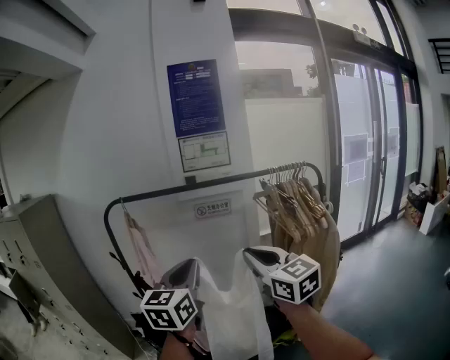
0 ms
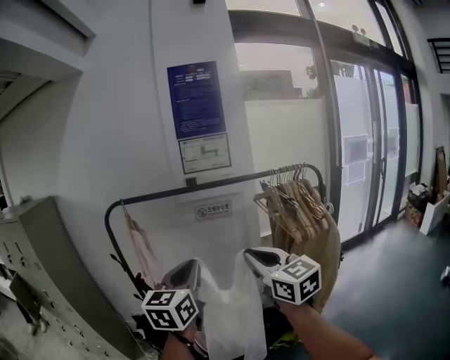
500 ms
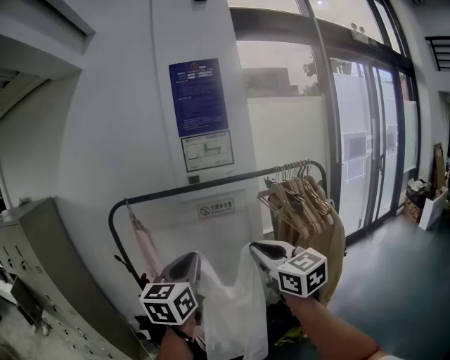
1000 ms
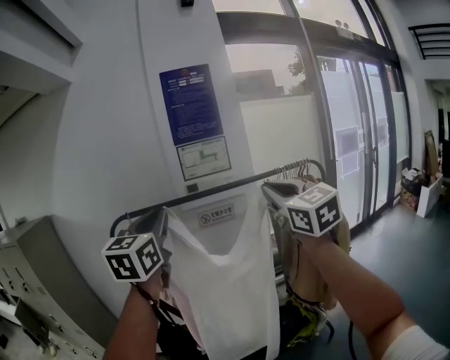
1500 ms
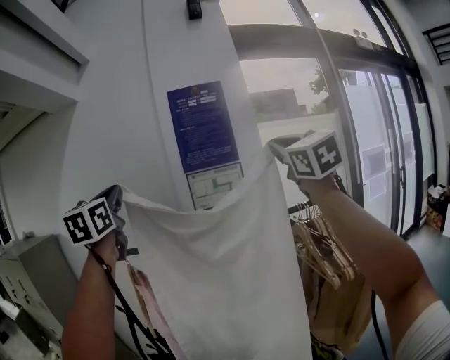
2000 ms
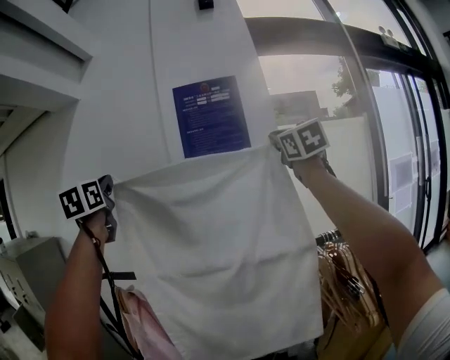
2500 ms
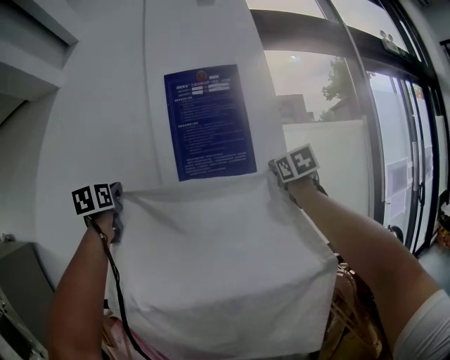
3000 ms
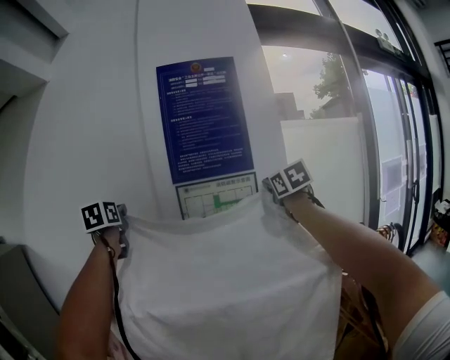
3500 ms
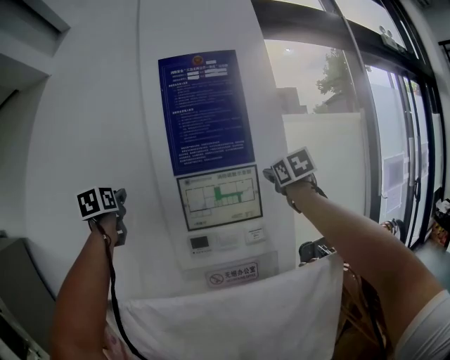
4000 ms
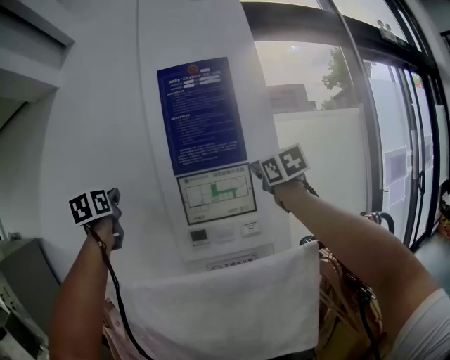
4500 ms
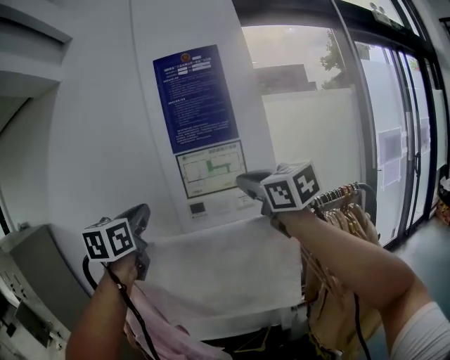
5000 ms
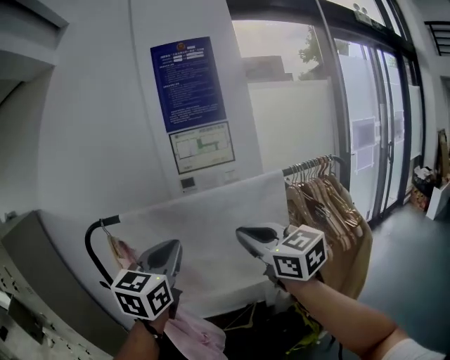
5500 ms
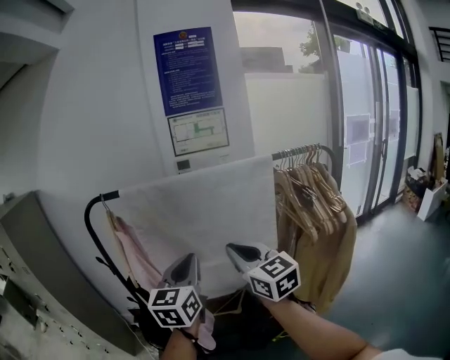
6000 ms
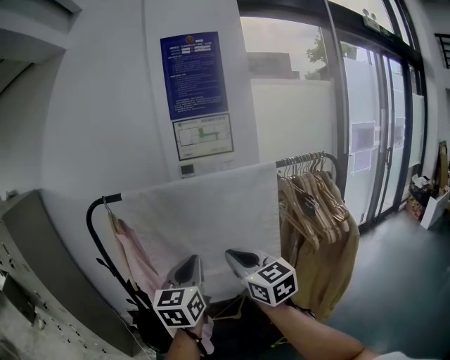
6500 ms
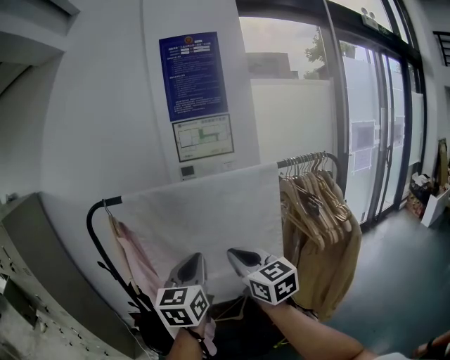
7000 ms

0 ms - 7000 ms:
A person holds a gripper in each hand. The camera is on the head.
0 ms - 2000 ms: The right gripper travels upward and forward by roughly 40 cm, and changes its angle by approximately 30 degrees. The left gripper moves upward, forward and to the left, approximately 40 cm, and turns by some 20 degrees.
2000 ms - 3500 ms: The pair of grippers is taken forward, about 40 cm. The left gripper changes its angle by approximately 20 degrees; the right gripper rotates some 20 degrees.
3500 ms - 5000 ms: The left gripper goes roughly 30 cm backward. The right gripper goes about 30 cm backward and to the left, and swivels some 30 degrees.
5000 ms - 7000 ms: The right gripper travels downward, backward and to the left by roughly 35 cm. Meanwhile the left gripper heads downward and backward, covering about 30 cm.

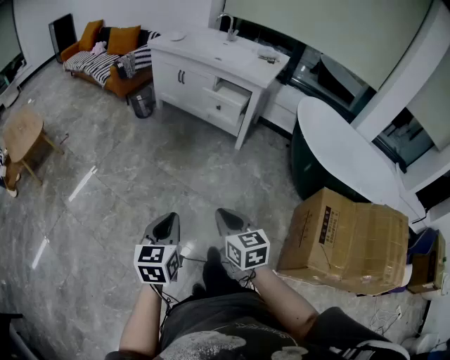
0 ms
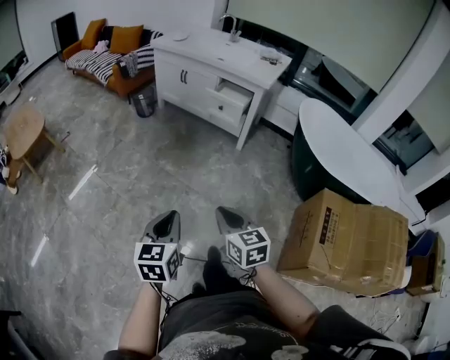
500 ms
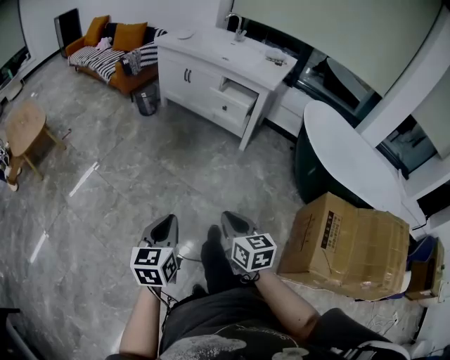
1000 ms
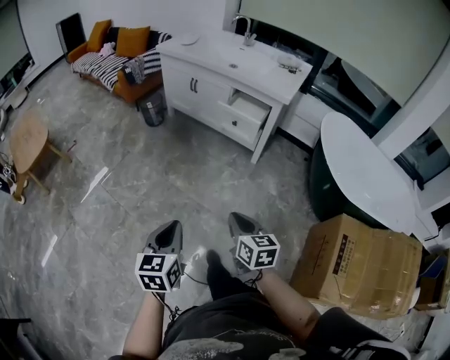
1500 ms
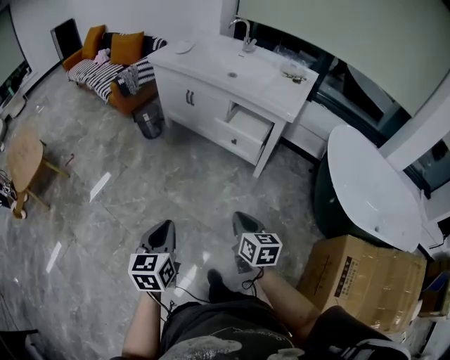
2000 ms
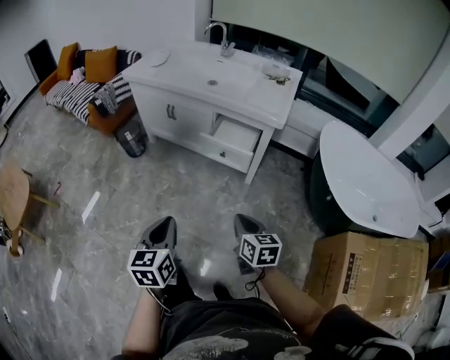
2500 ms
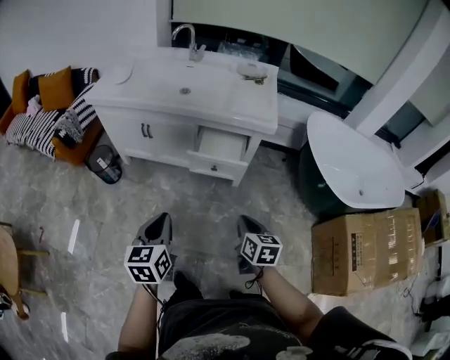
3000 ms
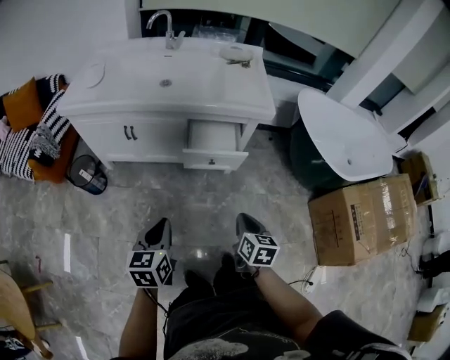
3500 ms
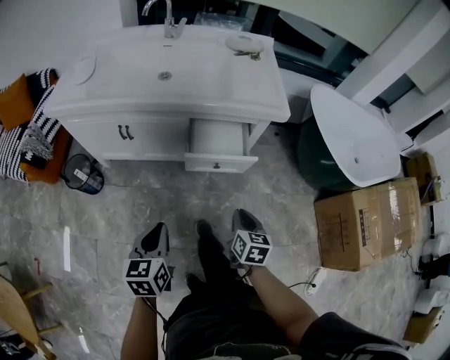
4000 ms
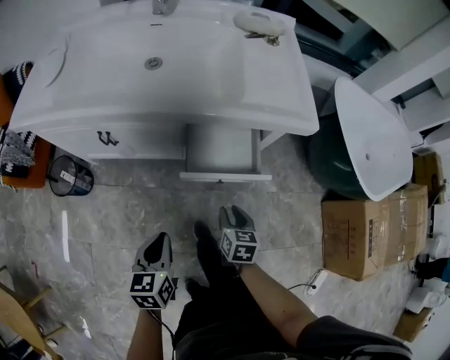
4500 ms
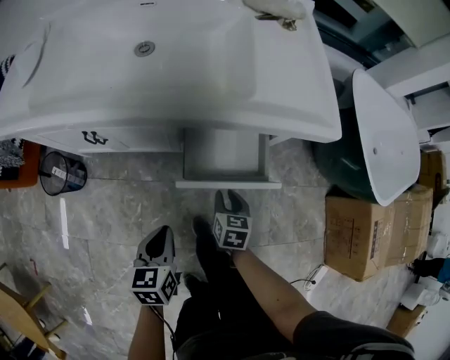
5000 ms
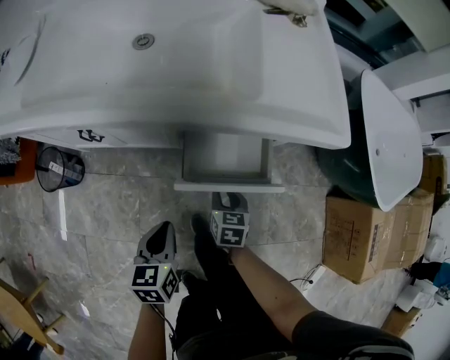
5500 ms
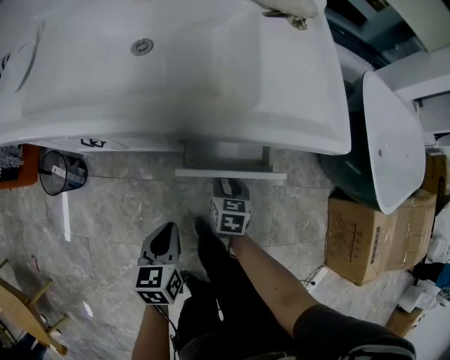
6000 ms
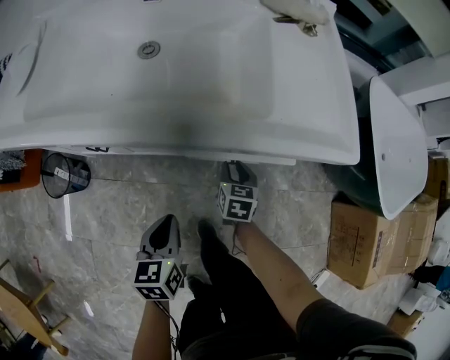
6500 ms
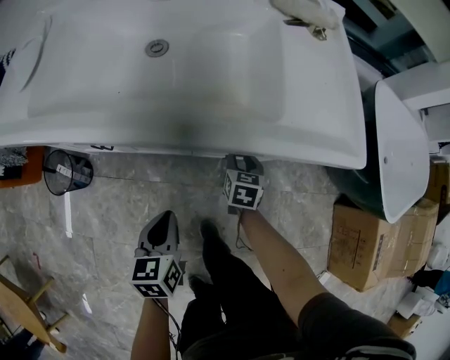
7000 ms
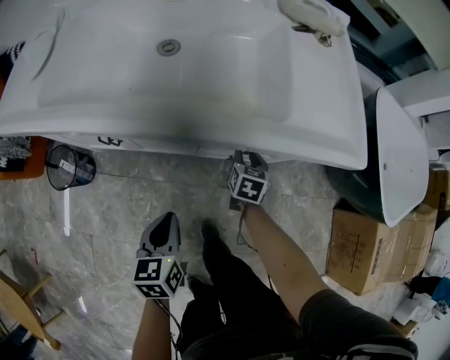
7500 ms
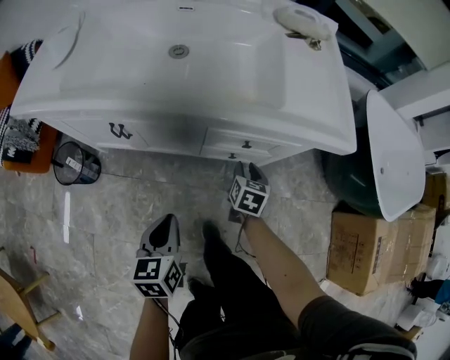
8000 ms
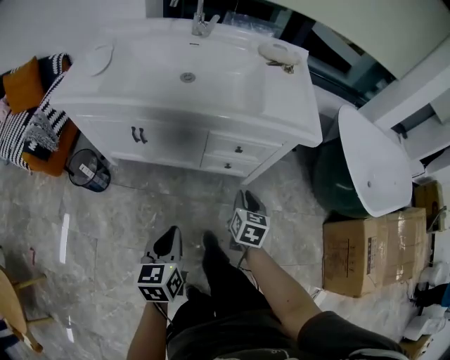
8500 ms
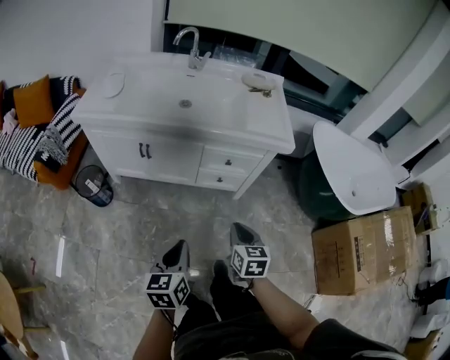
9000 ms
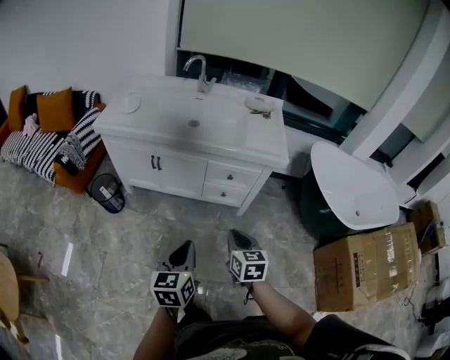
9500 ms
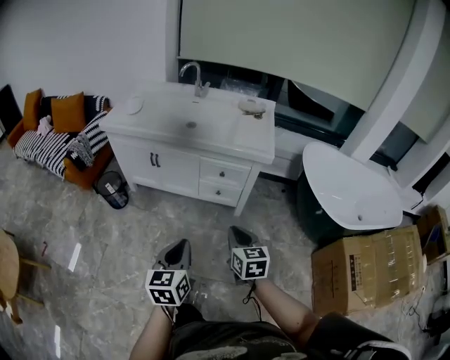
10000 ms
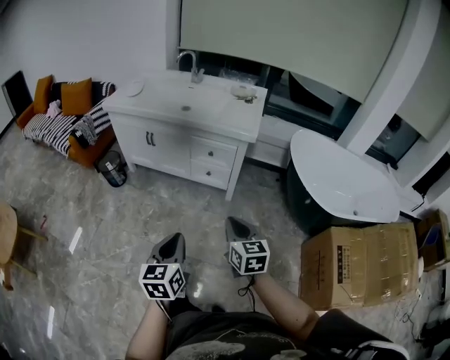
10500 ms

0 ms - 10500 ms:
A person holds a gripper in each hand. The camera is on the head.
0 ms - 2000 ms: The grippers both shift forward by approximately 30 cm.
2000 ms - 4000 ms: The right gripper ends up approximately 30 cm from where it was, and turns by about 40 degrees. The left gripper shifts by some 40 cm, and turns by some 30 degrees.
4000 ms - 6500 ms: The grippers both shift forward and downward by roughly 35 cm. The right gripper opens up.
6500 ms - 8500 ms: The two grippers go some 20 cm backward and upward.
8500 ms - 10500 ms: The right gripper moves backward, upward and to the right, some 40 cm, and turns by approximately 30 degrees. Meanwhile the left gripper moves backward, to the right and upward, about 40 cm.

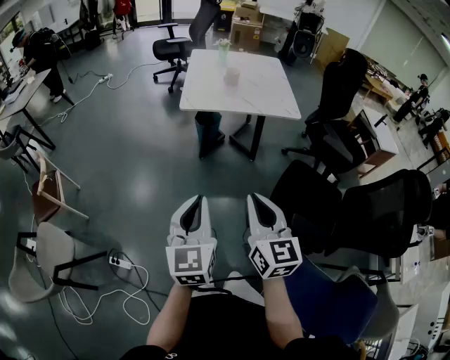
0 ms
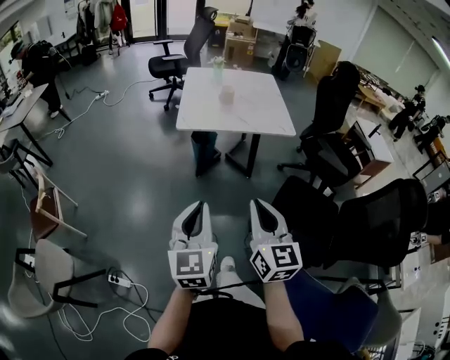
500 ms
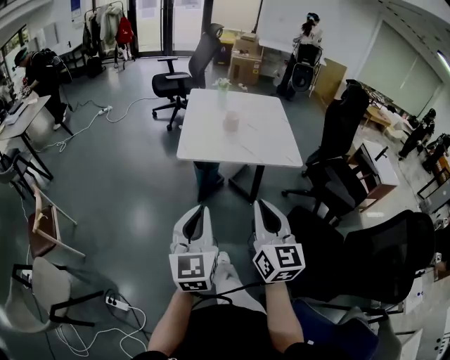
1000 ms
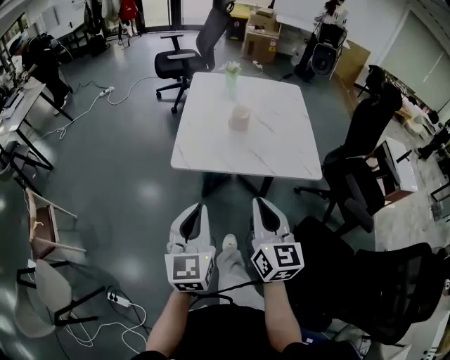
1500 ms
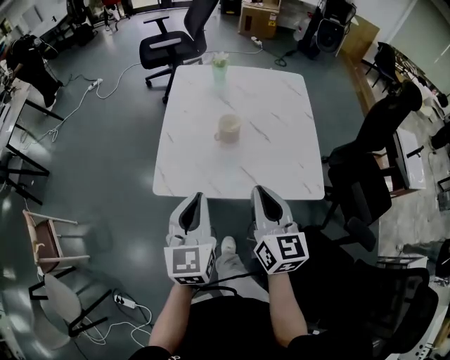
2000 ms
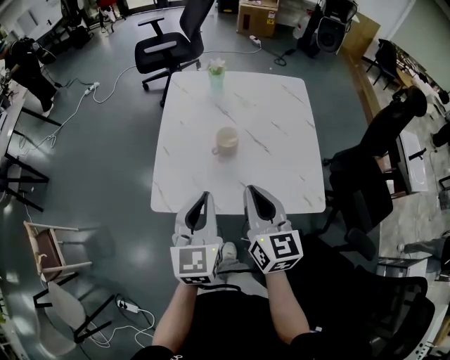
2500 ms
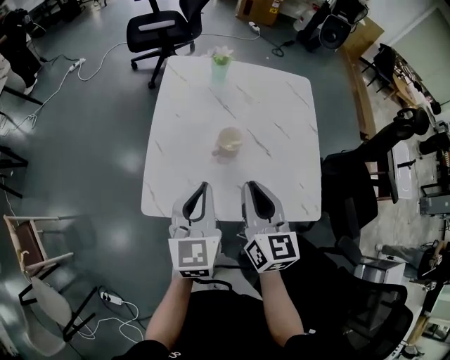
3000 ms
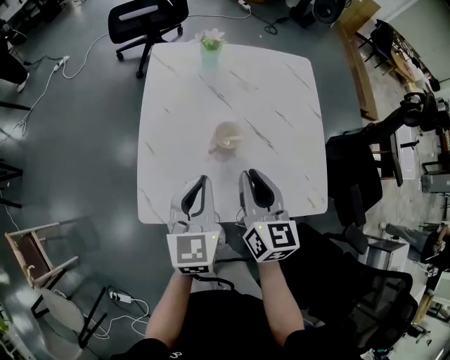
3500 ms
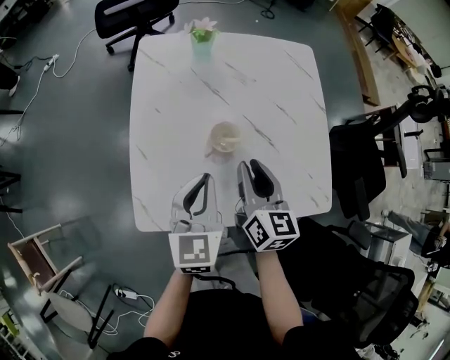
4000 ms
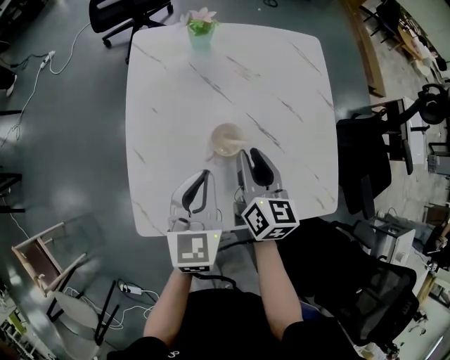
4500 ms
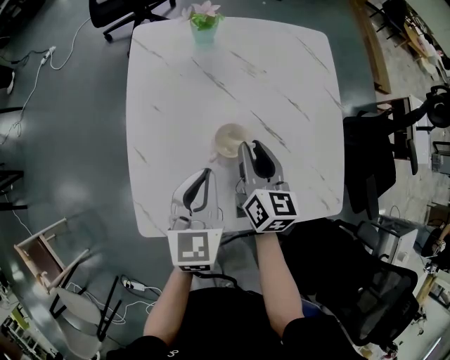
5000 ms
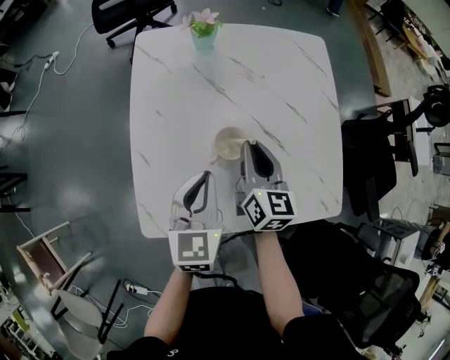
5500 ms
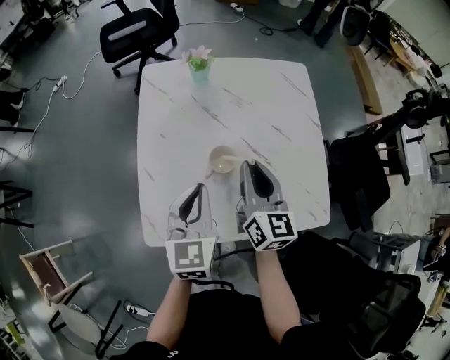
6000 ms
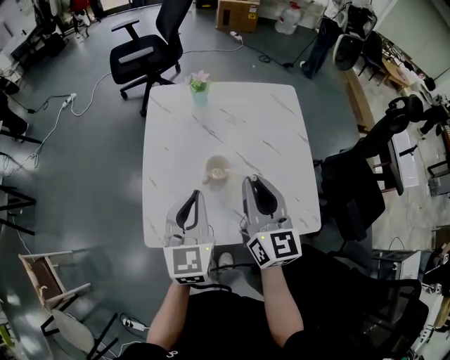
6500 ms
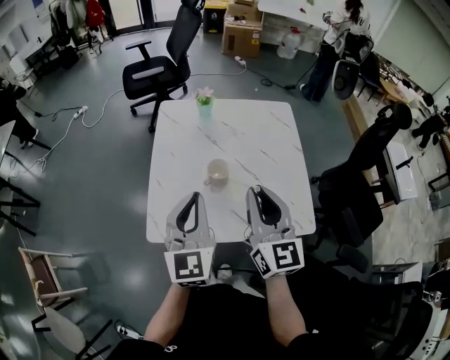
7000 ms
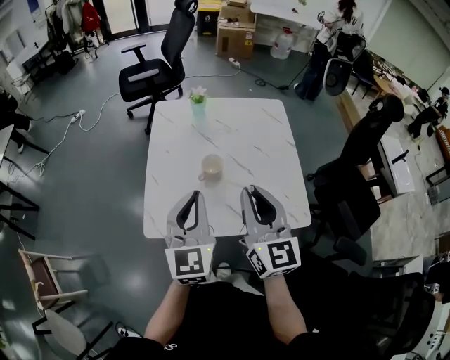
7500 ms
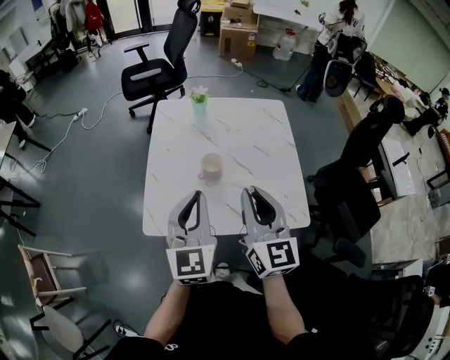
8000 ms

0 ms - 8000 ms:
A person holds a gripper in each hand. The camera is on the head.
0 ms - 2000 ms: Both grippers are carried forward, some 50 cm.
2000 ms - 4000 ms: Both grippers move forward and downward, some 25 cm. The right gripper opens up.
4000 ms - 6000 ms: The right gripper changes place by roughly 5 cm.
6000 ms - 8000 ms: The right gripper is displaced backward and upward by approximately 20 cm, while the left gripper travels upward and backward by approximately 20 cm.

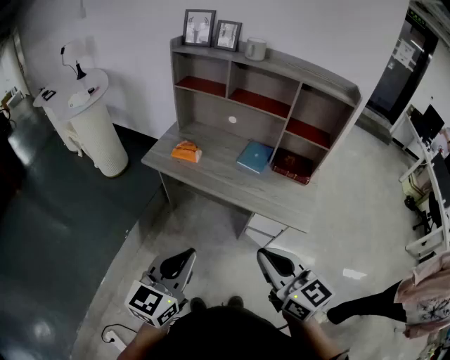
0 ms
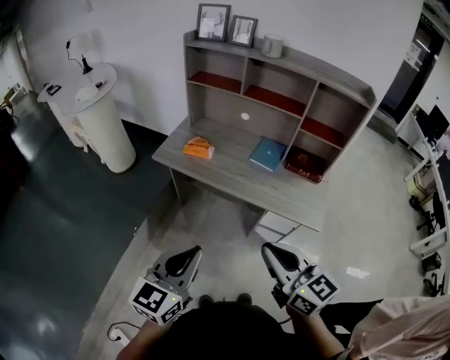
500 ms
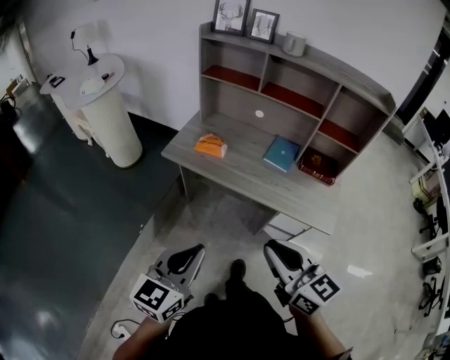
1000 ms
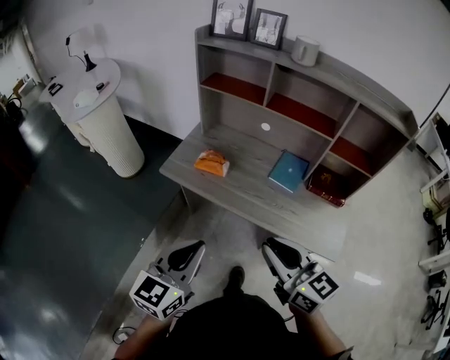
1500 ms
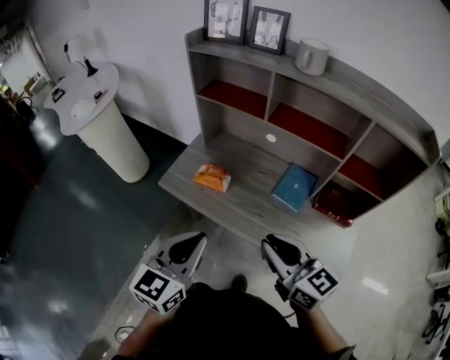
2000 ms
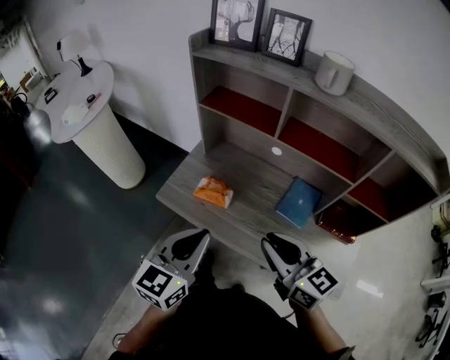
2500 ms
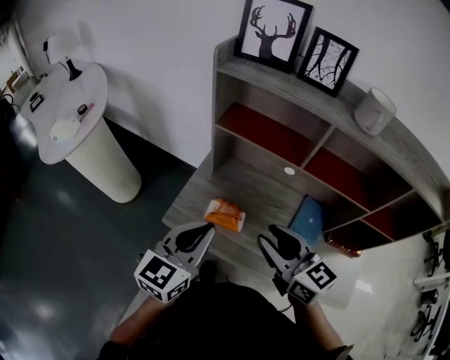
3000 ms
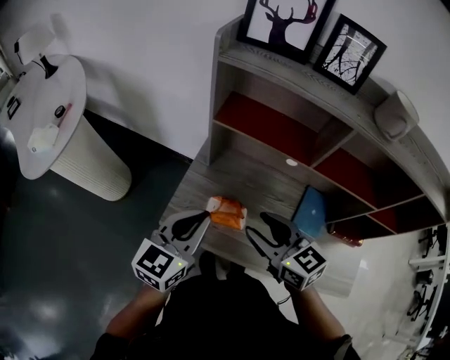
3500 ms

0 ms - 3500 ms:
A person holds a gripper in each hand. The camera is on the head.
0 ms - 2000 ms: The grippers both shift forward by some 30 cm.
2000 ms - 3500 ms: The two grippers go approximately 30 cm forward and to the left. The right gripper opens its fingers.
